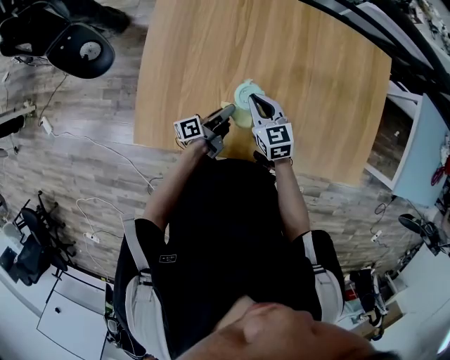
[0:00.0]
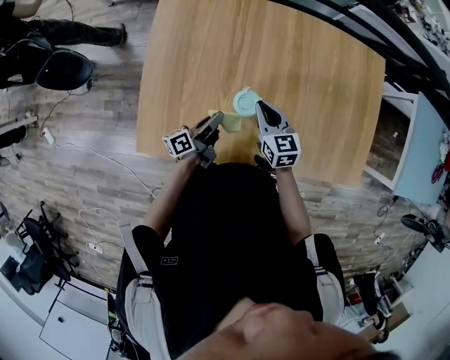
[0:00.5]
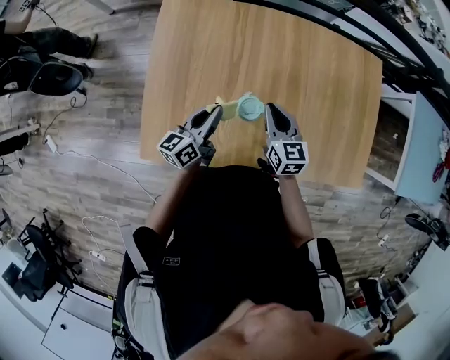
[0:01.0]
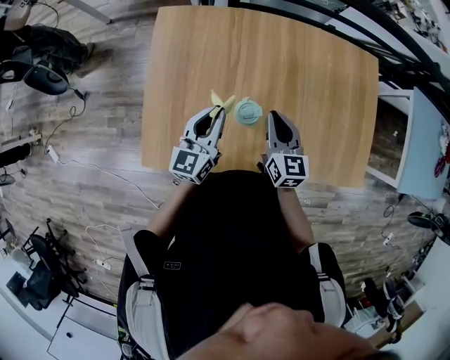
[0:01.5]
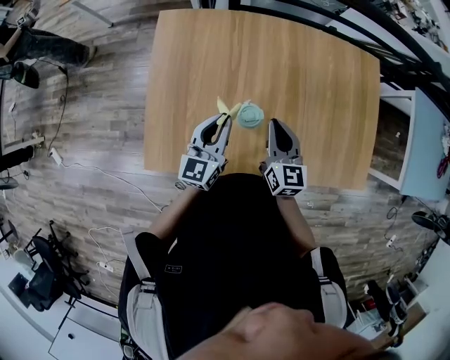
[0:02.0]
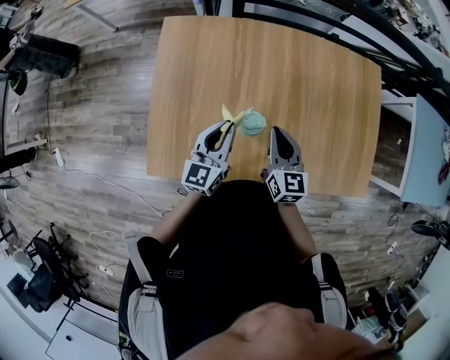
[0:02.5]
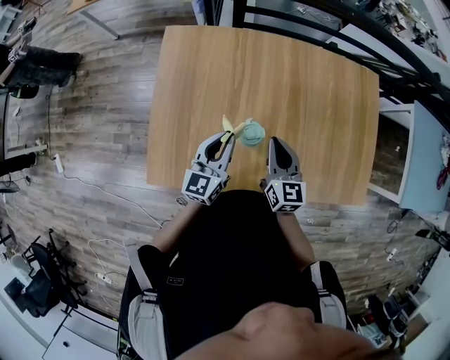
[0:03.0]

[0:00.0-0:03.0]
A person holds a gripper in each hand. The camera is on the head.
0:00.0 to 0:01.5: The left gripper travels upward by about 20 cm, and rotates around the line of its fingers by approximately 70 degrees, clockwise from behind, while the right gripper moves upward and to the right, approximately 10 cm, and changes its angle by about 30 degrees.
0:01.5 to 0:03.0: The grippers stay close to where they were, moving slightly.

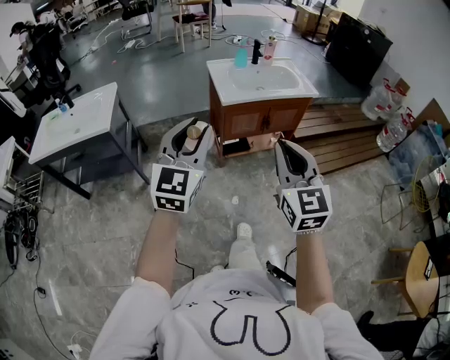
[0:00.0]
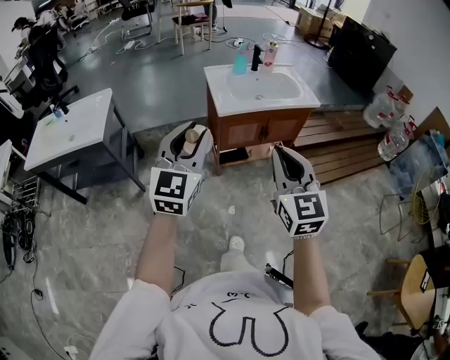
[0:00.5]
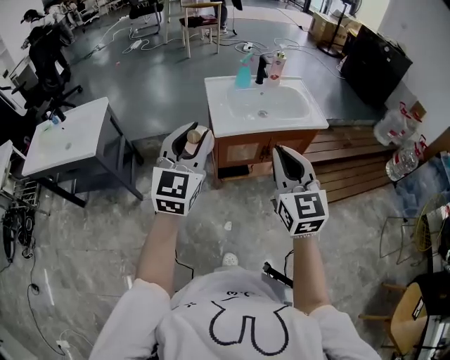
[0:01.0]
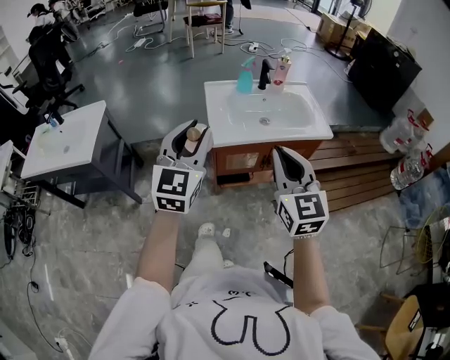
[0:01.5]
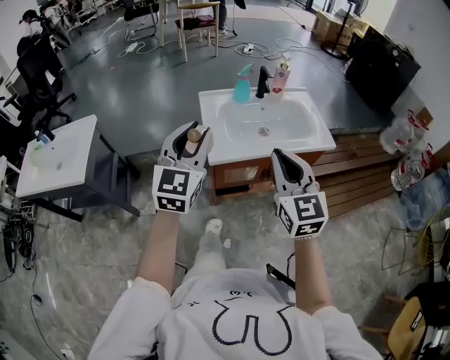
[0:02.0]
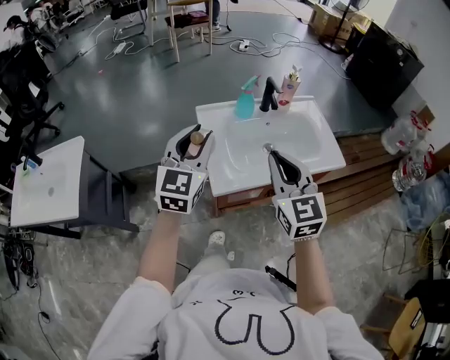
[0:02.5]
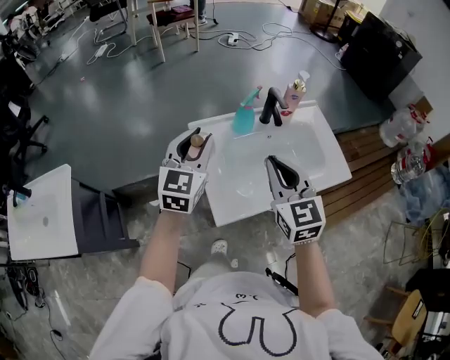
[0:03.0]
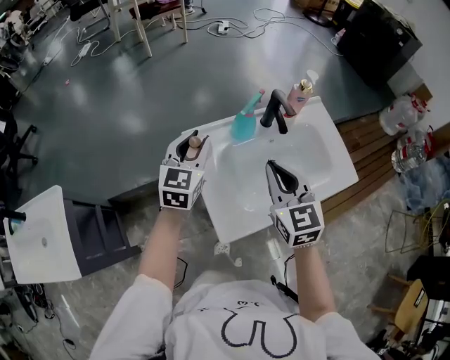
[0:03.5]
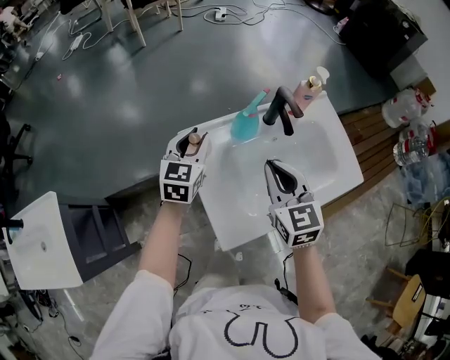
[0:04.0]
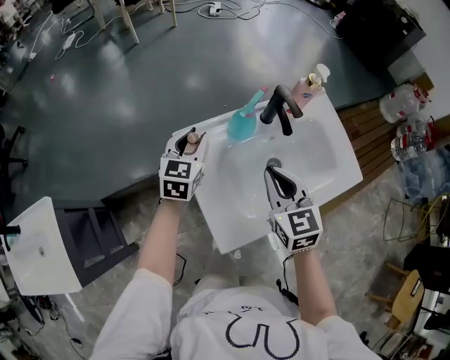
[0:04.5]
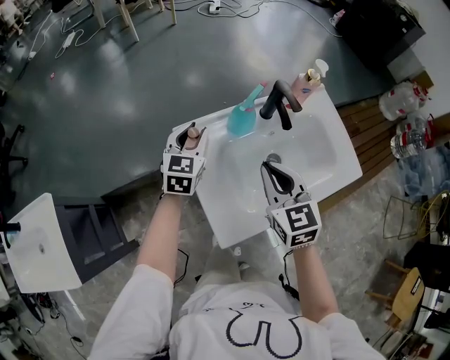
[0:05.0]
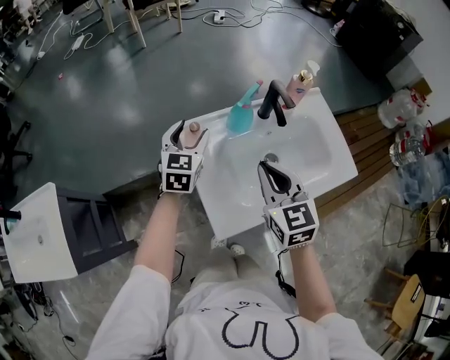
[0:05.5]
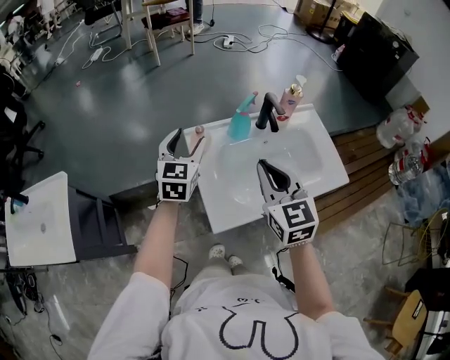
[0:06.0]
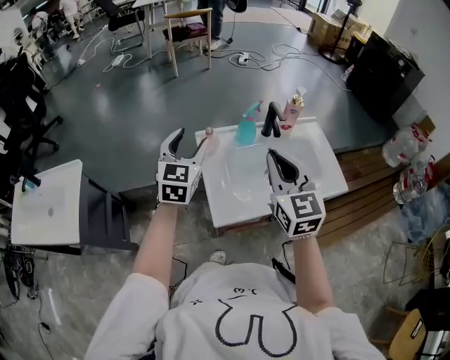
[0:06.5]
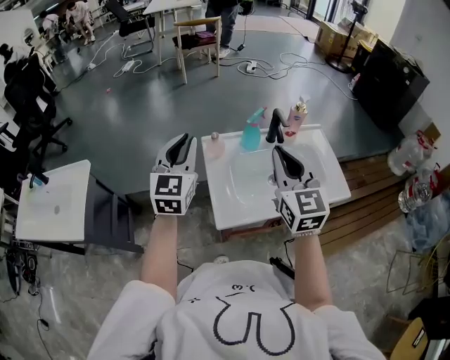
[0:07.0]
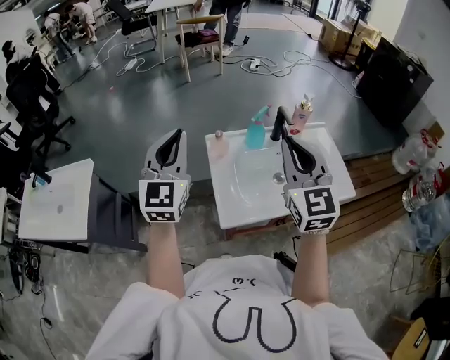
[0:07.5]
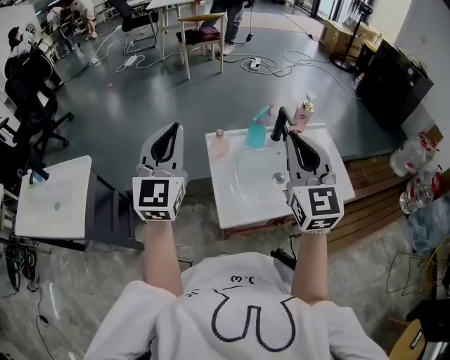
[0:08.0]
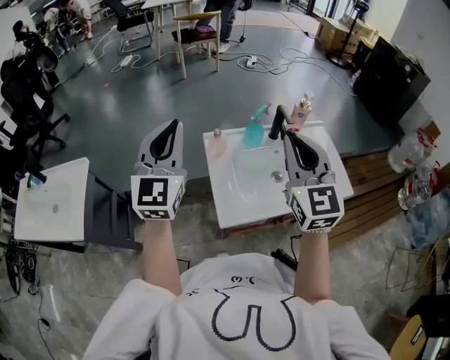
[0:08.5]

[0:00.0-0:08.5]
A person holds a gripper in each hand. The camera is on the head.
0:00.0 to 0:02.0: The grippers both shift forward by roughly 35 cm.
0:02.0 to 0:04.0: The right gripper travels forward by about 35 cm. Meanwhile the left gripper is displaced forward and downward by approximately 50 cm, and rotates about 30 degrees.
0:04.0 to 0:06.5: The grippers both shift upward and backward by some 20 cm. The left gripper opens its fingers.
0:06.5 to 0:08.5: The left gripper moves upward and backward, roughly 15 cm, and closes its fingers. The right gripper moves upward, some 10 cm.

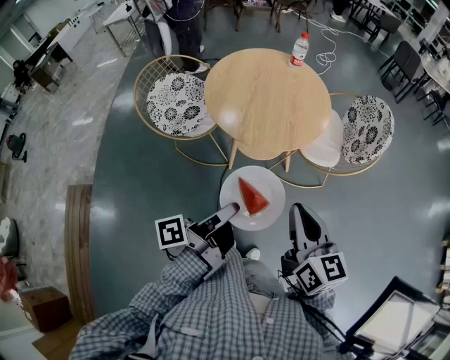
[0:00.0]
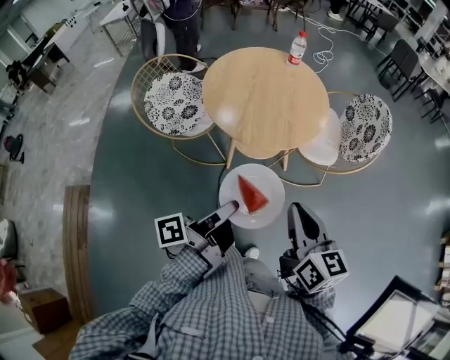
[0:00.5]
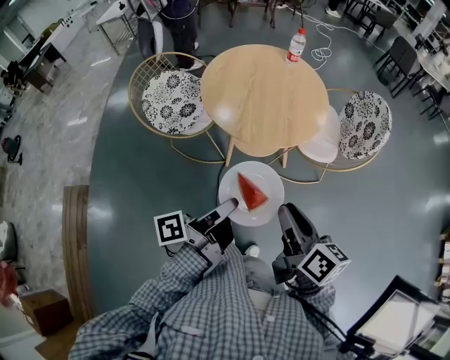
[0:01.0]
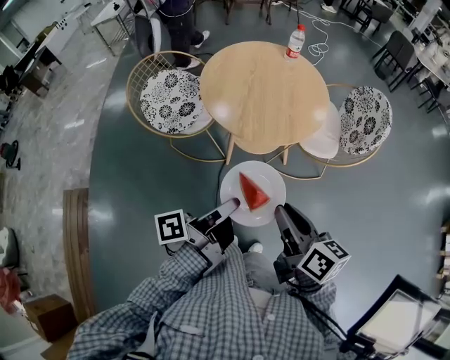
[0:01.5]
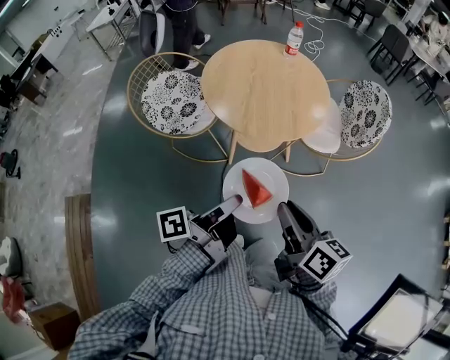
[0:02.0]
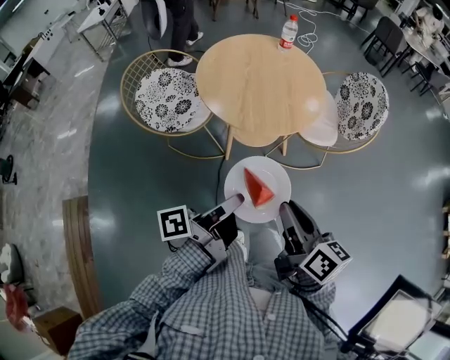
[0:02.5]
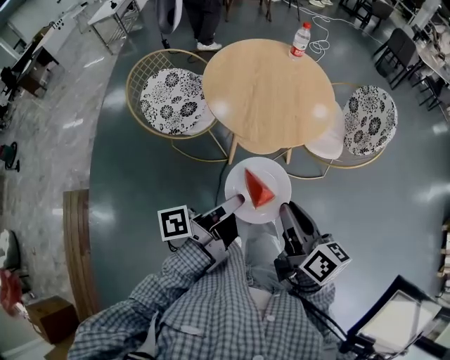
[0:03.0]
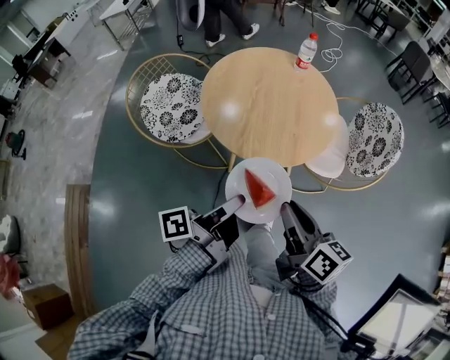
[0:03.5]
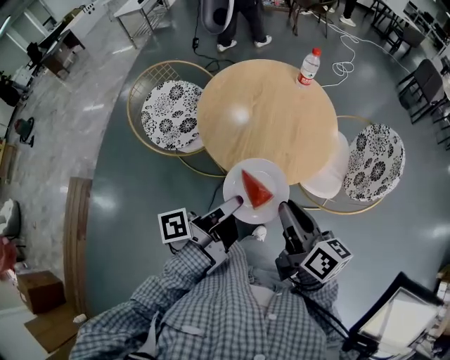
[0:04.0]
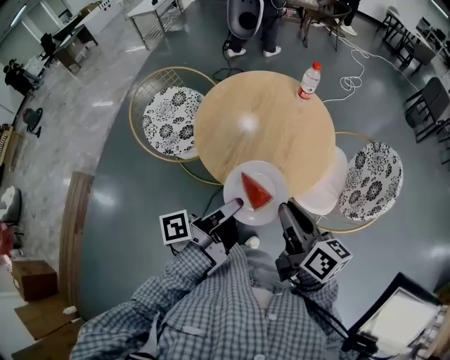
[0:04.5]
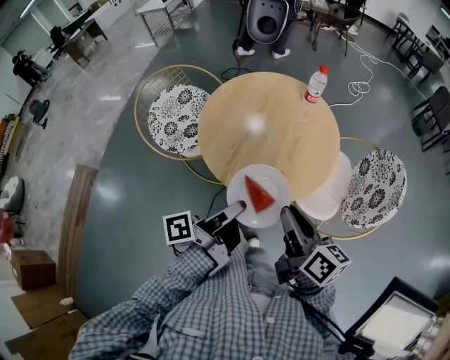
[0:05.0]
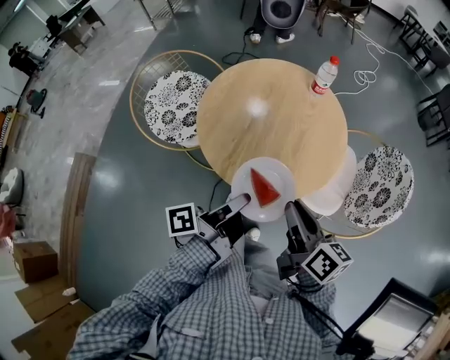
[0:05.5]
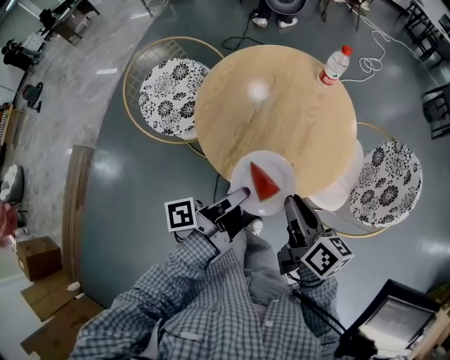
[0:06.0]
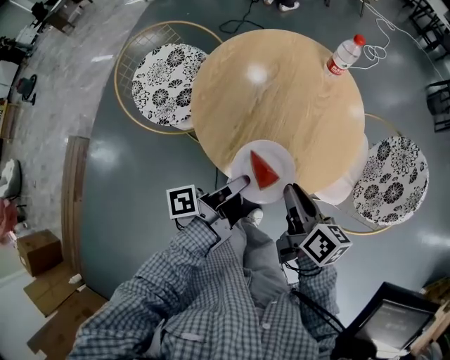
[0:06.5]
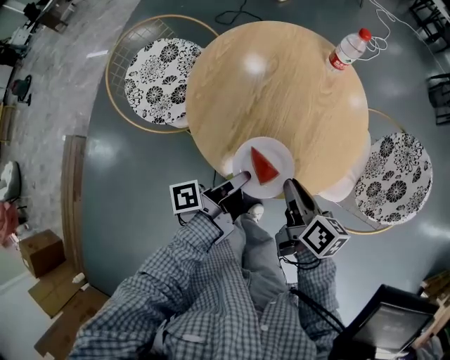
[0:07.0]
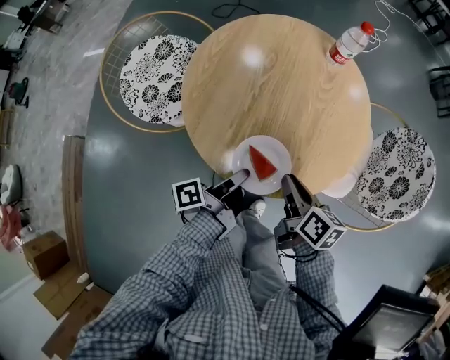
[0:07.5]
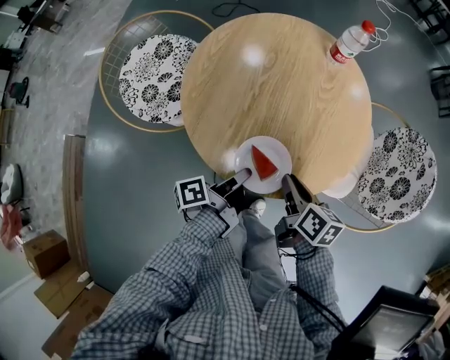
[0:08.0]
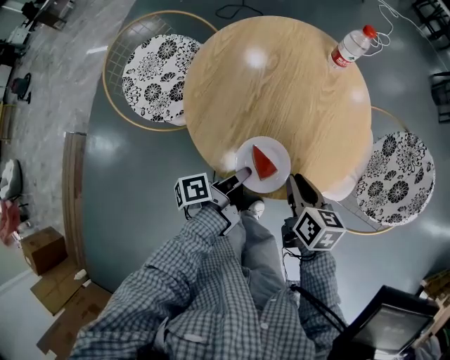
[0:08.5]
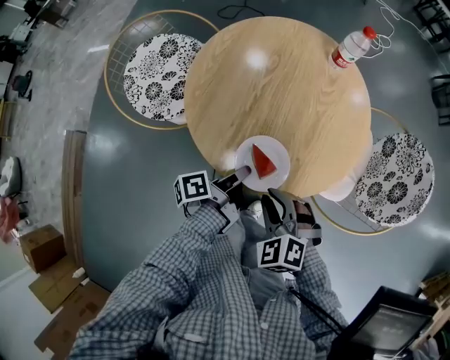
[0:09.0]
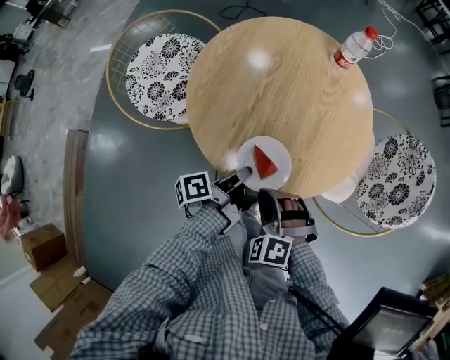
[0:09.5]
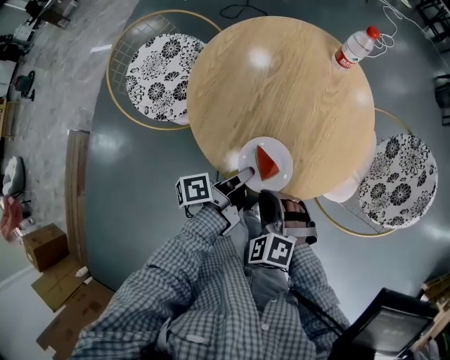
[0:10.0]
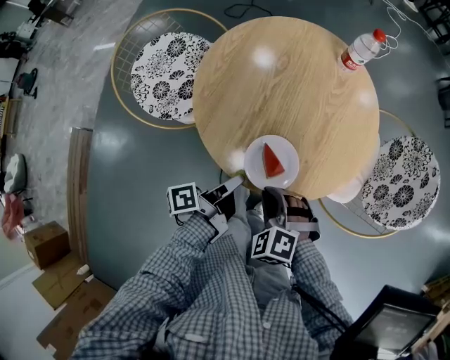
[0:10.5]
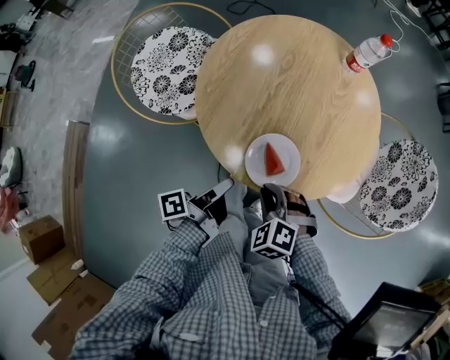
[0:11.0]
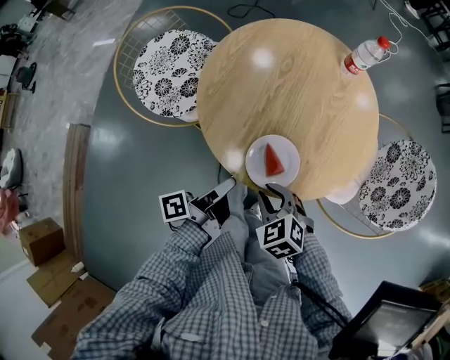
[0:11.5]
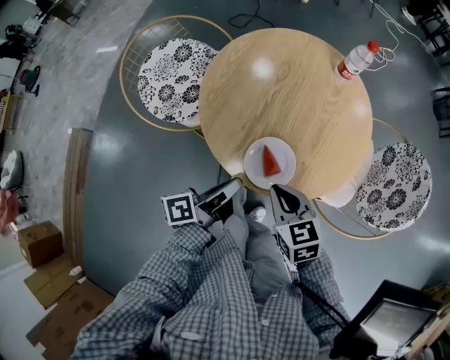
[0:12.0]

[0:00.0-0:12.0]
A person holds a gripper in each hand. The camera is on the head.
0:00.0 to 0:02.0: The right gripper moves approximately 5 cm, and turns by roughly 30 degrees.
0:02.0 to 0:04.0: The right gripper shifts by approximately 20 cm.
0:04.0 to 0:06.0: The right gripper changes place by approximately 10 cm.
0:06.0 to 0:08.0: The right gripper shifts about 15 cm downward.
0:08.0 to 0:10.0: The right gripper ends up roughly 10 cm from where it was, and rotates around the line of its fingers by about 100 degrees, counterclockwise from behind.
0:10.0 to 0:12.0: The right gripper ends up about 5 cm from where it was, and twists some 50 degrees clockwise, seen from behind.

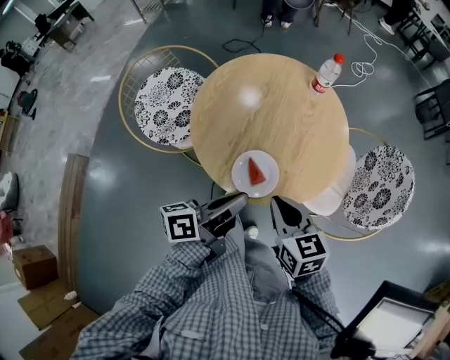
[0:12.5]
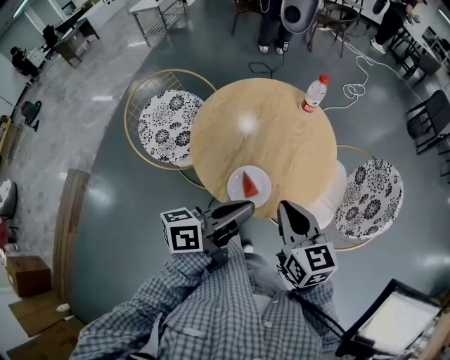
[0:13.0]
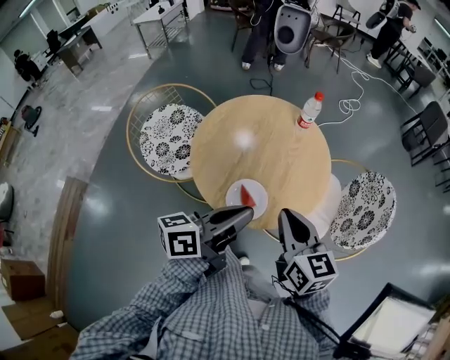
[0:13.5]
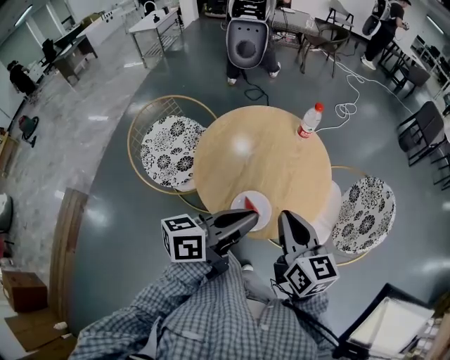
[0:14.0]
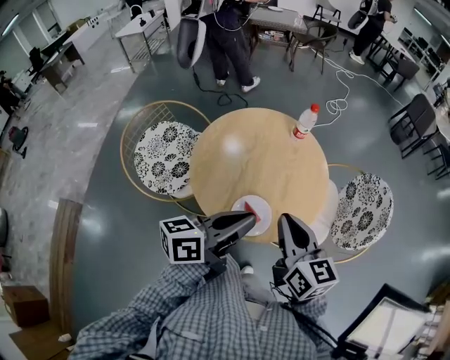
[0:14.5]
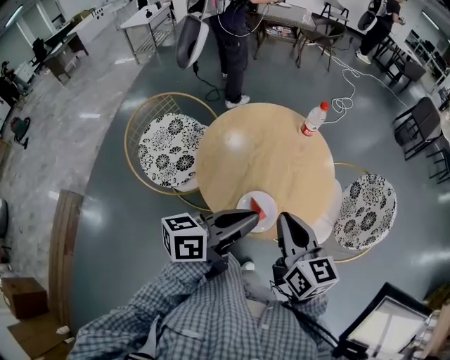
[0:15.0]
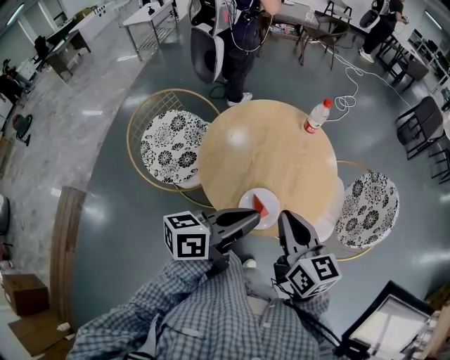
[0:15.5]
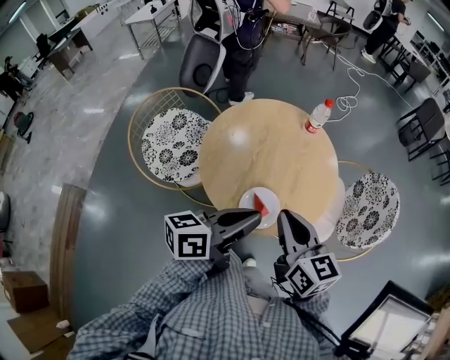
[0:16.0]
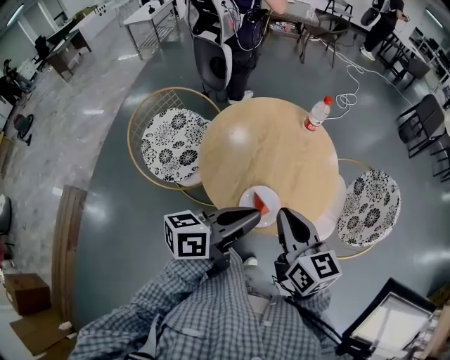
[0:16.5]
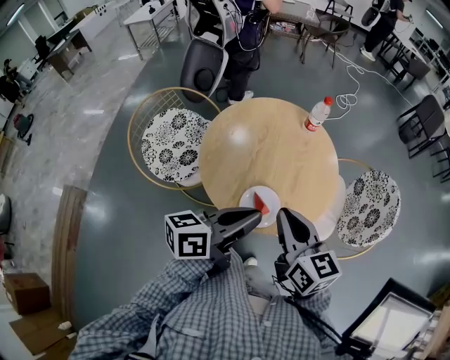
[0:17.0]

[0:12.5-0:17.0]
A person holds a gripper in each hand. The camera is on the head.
0:12.5 to 0:14.5: The right gripper is displaced upward by roughly 15 cm, and changes its angle by about 20 degrees.
